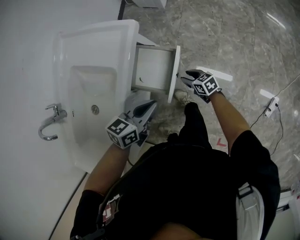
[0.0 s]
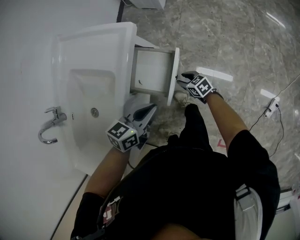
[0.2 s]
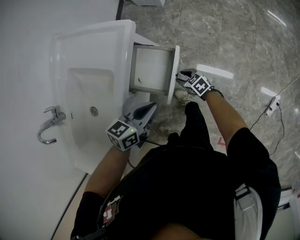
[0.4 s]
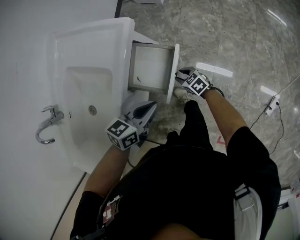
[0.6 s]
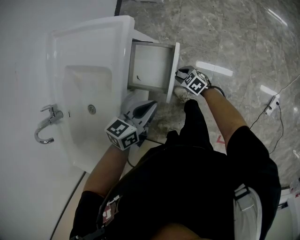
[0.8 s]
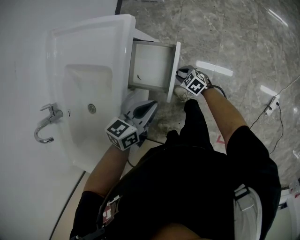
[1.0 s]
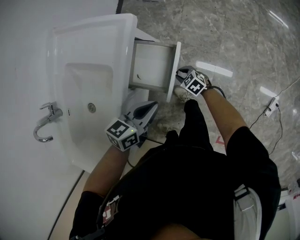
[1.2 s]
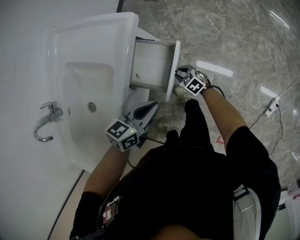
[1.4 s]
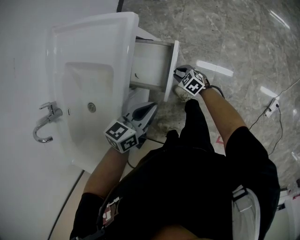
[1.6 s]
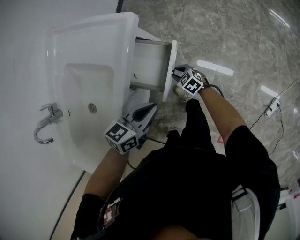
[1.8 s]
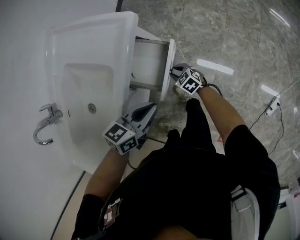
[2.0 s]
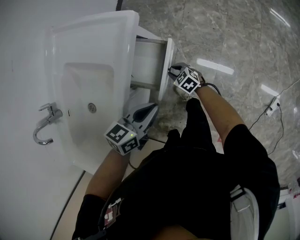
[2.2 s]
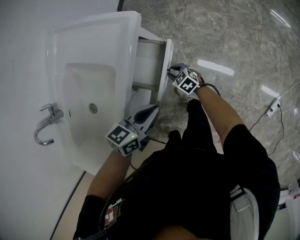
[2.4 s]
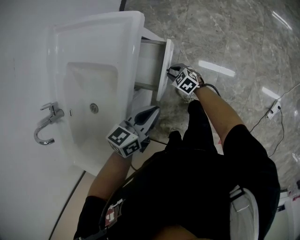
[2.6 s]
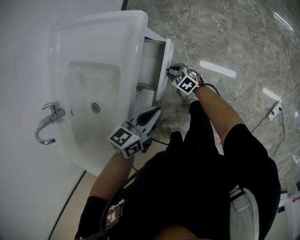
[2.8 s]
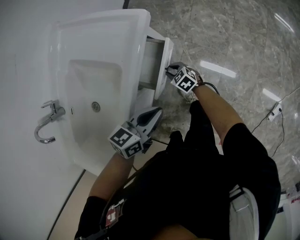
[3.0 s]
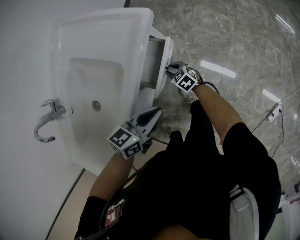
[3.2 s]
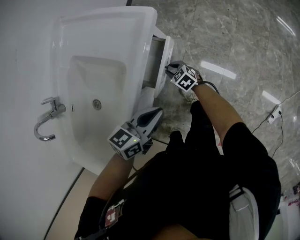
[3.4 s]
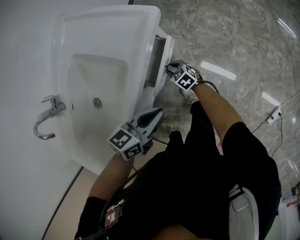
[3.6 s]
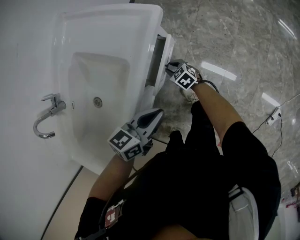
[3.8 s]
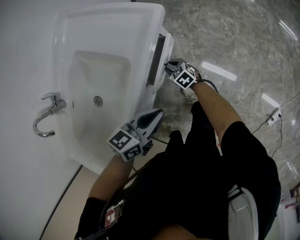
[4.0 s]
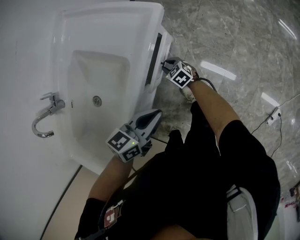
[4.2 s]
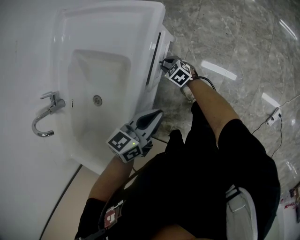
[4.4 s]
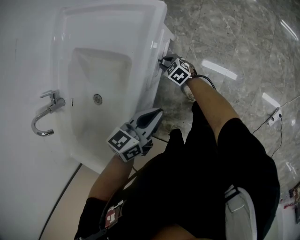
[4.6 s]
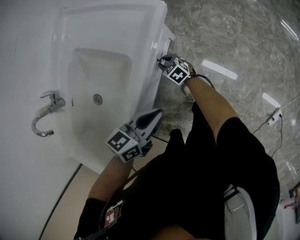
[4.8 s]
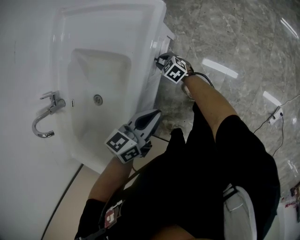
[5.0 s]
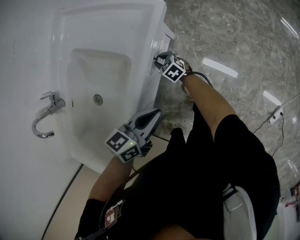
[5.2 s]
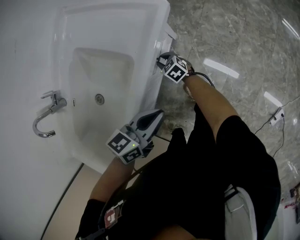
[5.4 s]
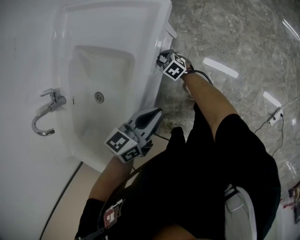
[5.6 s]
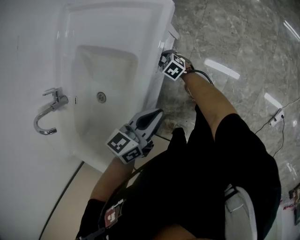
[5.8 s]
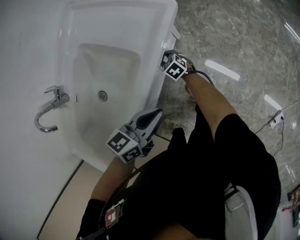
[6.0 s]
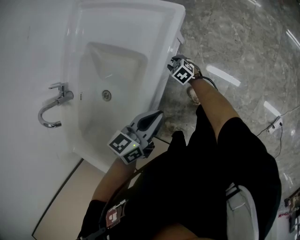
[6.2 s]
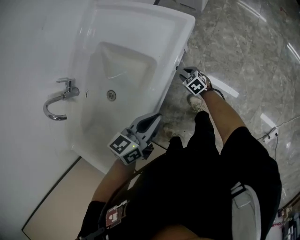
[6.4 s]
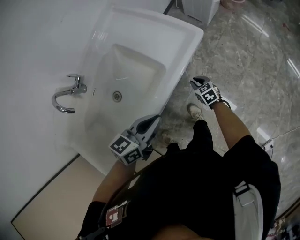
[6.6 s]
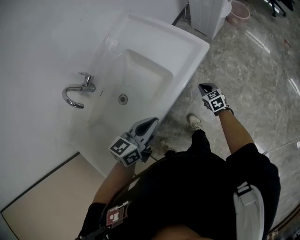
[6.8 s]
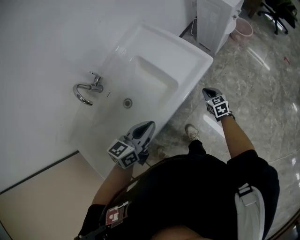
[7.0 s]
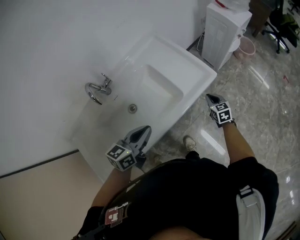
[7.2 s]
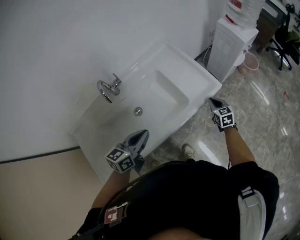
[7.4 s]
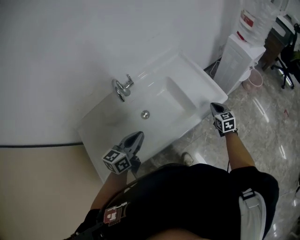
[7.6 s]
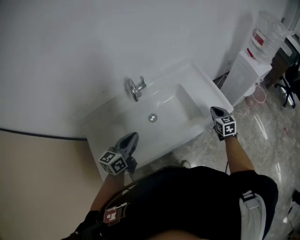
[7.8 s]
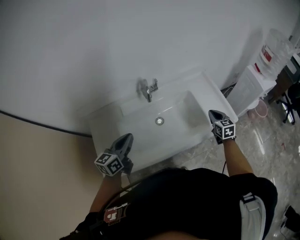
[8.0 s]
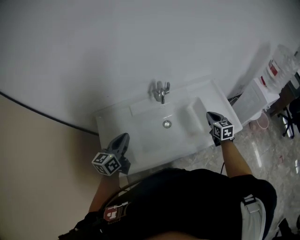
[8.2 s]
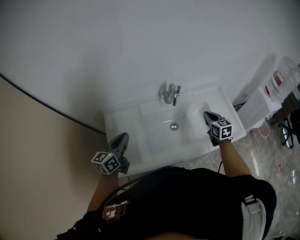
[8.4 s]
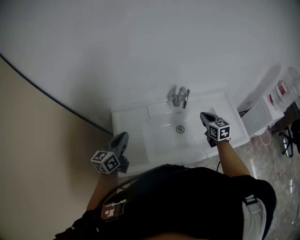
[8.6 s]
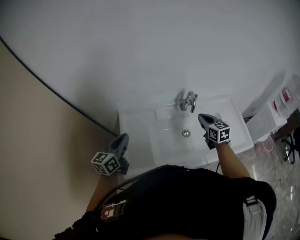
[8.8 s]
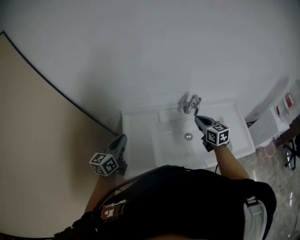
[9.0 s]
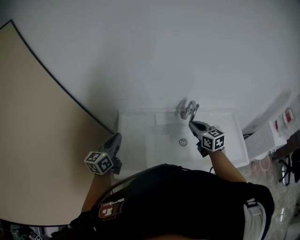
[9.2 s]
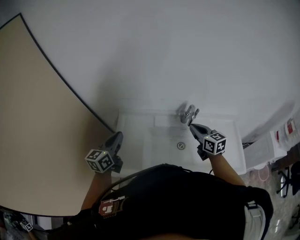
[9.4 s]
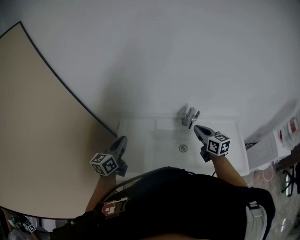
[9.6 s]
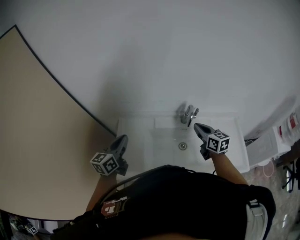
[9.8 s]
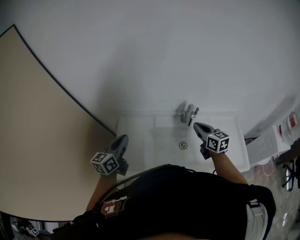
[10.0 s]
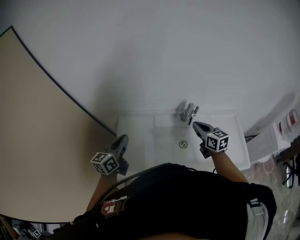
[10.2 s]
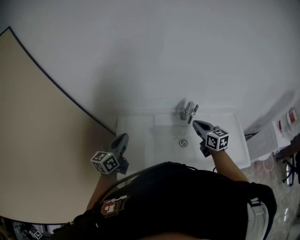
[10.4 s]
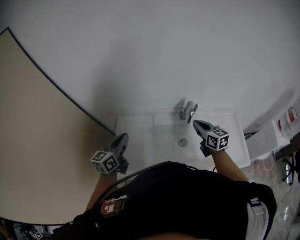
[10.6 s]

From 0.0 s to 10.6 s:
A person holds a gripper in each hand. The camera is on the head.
From 0.0 s to 1.6 s: The right gripper changes place by some 5 cm, and swivels roughly 30 degrees.
From 1.6 s to 3.0 s: The right gripper travels to the left by roughly 10 cm.
From 3.0 s to 4.6 s: The right gripper shifts approximately 5 cm to the left.
From 4.6 s to 6.0 s: The grippers stay close to where they were, moving slightly.
From 6.0 s to 7.6 s: The right gripper goes about 35 cm upward, and closes its fingers; the left gripper travels to the left and upward by about 35 cm, and rotates approximately 50 degrees.
From 7.6 s to 9.0 s: Both grippers are carried some 50 cm. The left gripper swivels some 40 degrees, while the right gripper swivels some 40 degrees.
From 9.0 s to 10.6 s: The right gripper ends up roughly 5 cm from where it was. The left gripper is displaced to the right by some 5 cm.

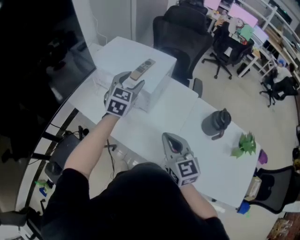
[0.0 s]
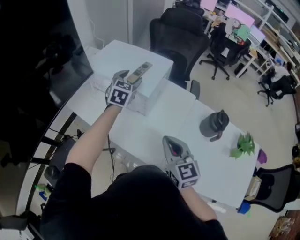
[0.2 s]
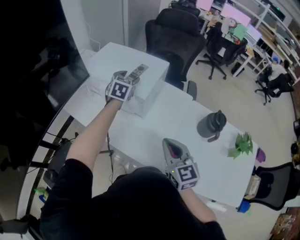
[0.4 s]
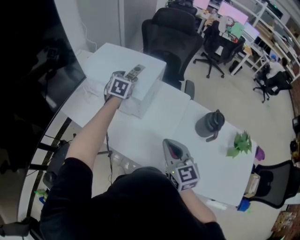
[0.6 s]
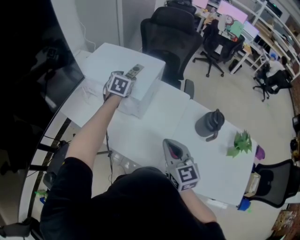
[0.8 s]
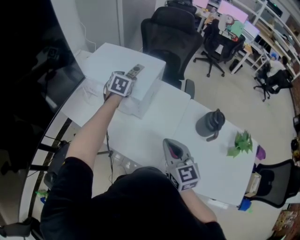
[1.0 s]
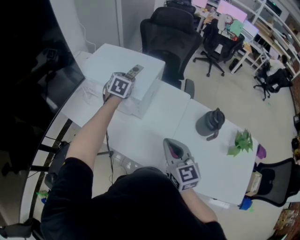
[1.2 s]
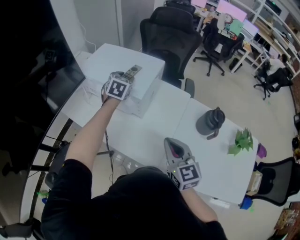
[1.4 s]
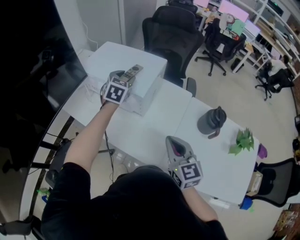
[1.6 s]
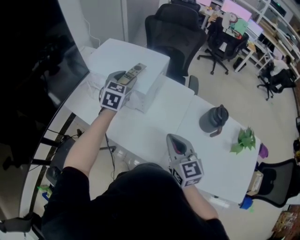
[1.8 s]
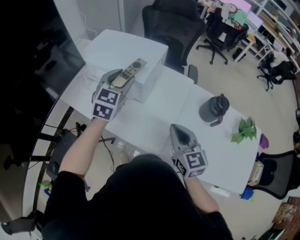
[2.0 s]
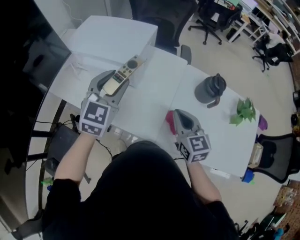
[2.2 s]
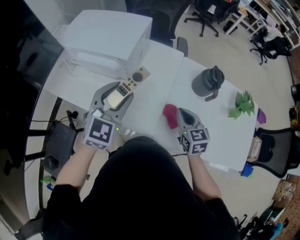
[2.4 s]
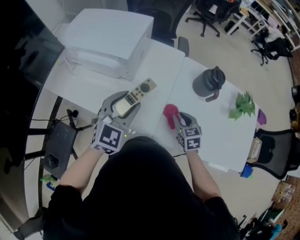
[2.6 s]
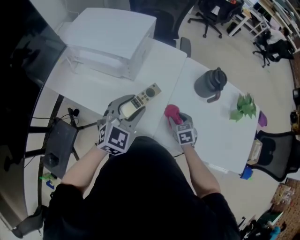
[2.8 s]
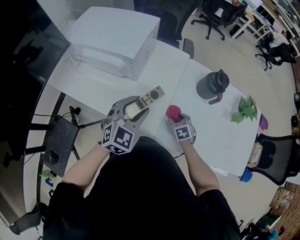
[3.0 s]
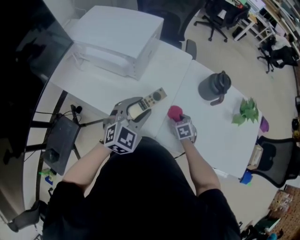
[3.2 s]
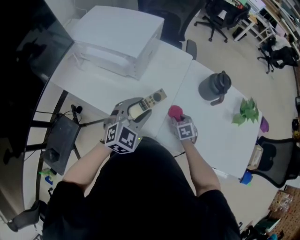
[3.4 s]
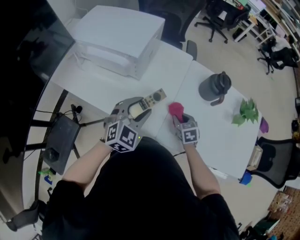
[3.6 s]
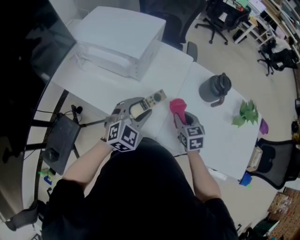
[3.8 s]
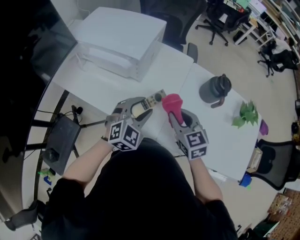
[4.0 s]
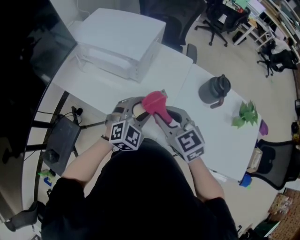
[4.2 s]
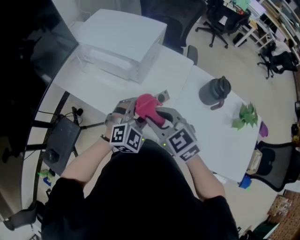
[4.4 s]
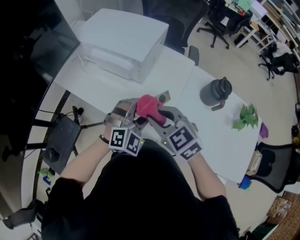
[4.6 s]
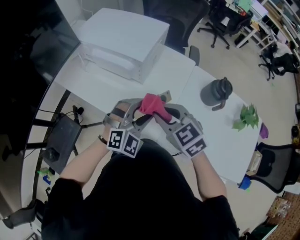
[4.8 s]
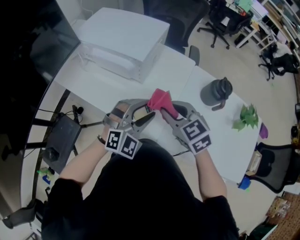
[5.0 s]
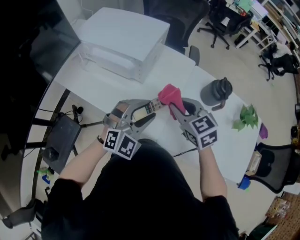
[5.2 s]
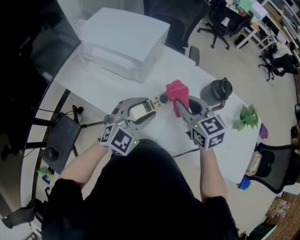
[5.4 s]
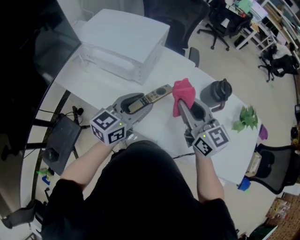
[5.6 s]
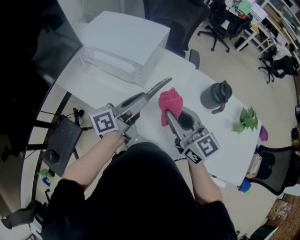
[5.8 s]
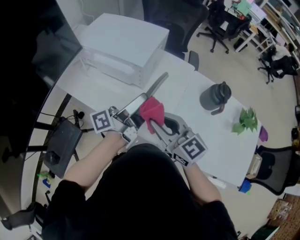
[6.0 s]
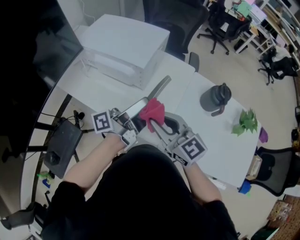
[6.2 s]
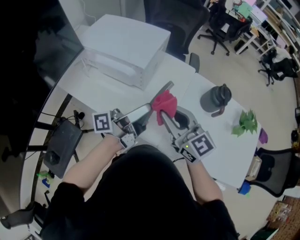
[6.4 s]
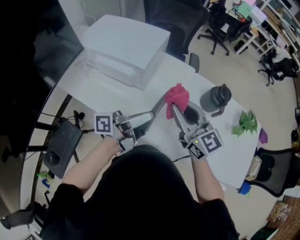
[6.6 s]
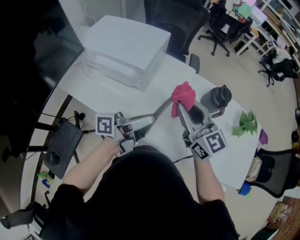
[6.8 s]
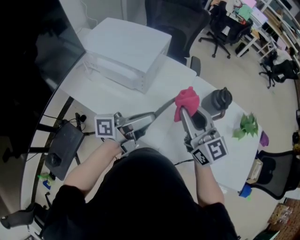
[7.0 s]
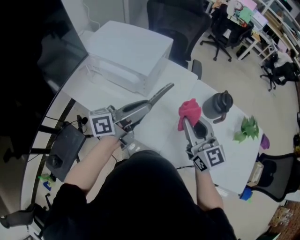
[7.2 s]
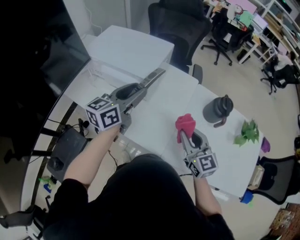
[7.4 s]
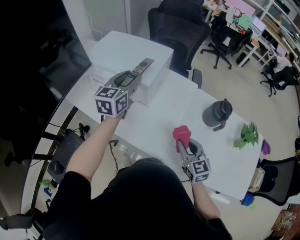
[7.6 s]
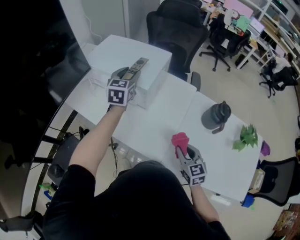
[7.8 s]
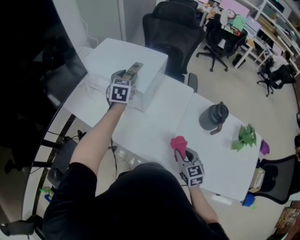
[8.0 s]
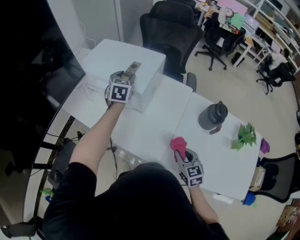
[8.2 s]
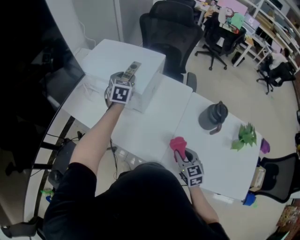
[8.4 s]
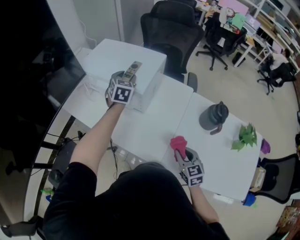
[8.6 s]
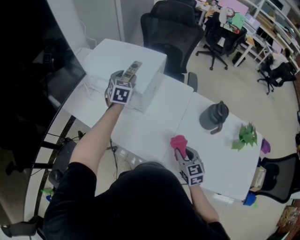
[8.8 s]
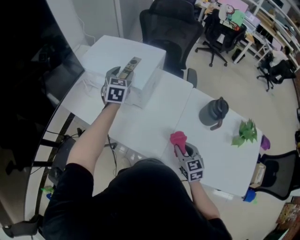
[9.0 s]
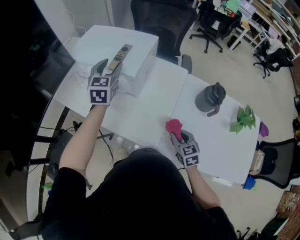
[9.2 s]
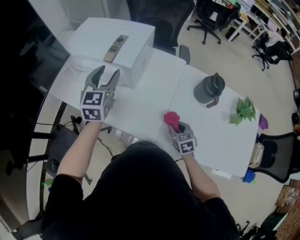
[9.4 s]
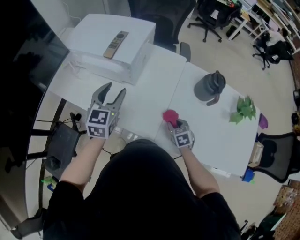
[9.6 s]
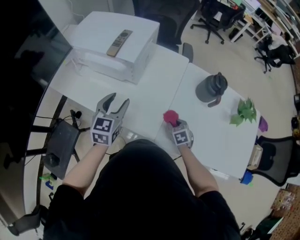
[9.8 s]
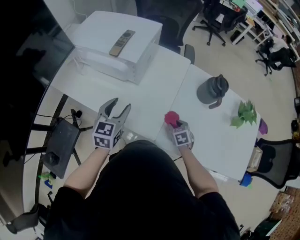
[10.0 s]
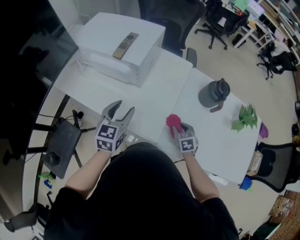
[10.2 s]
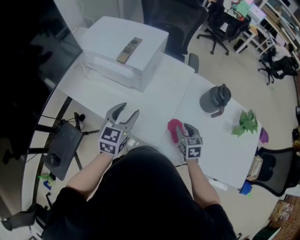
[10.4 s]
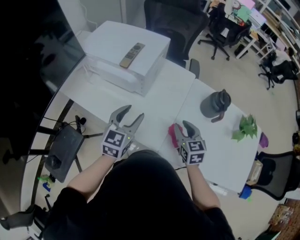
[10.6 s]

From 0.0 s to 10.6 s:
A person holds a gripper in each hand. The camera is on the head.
From 0.0 s to 1.6 s: The left gripper heads forward, covering roughly 5 cm.
From 1.6 s to 3.0 s: The right gripper heads downward, covering about 30 cm, tips its fingers downward by some 40 degrees, and opens up, while the left gripper moves backward and to the right, some 30 cm, and turns by about 30 degrees.
From 3.0 s to 4.6 s: The left gripper rotates some 20 degrees; the right gripper shifts approximately 35 cm upward and to the left, turns by about 40 degrees, and closes.
From 4.6 s to 6.0 s: The left gripper goes roughly 10 cm upward, and twists roughly 110 degrees counterclockwise, seen from behind. Meanwhile the right gripper goes to the right and returns, approximately 10 cm each way, and swivels about 30 degrees.
From 6.0 s to 7.6 s: The right gripper moves to the right and downward, about 15 cm, and turns by about 30 degrees. The left gripper heads forward and to the left, covering some 15 cm, and rolls clockwise, seen from behind, by about 70 degrees.
From 7.6 s to 9.0 s: The right gripper moves downward, about 10 cm; the left gripper moves forward and downward, some 10 cm, and swivels some 30 degrees.
From 9.0 s to 10.6 s: The left gripper heads backward, covering roughly 25 cm, and swivels roughly 20 degrees, while the right gripper goes downward and returns, some 15 cm each way.

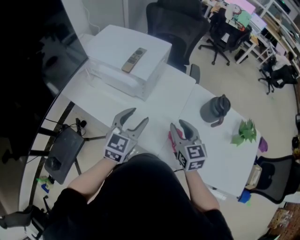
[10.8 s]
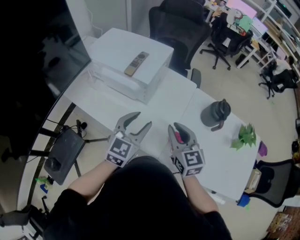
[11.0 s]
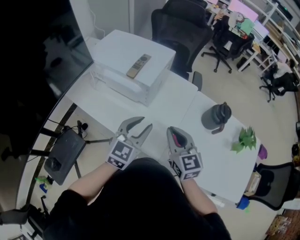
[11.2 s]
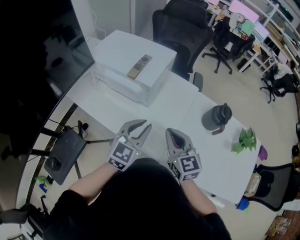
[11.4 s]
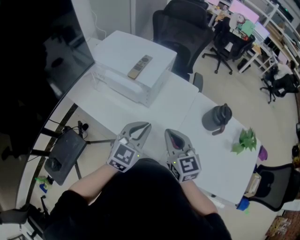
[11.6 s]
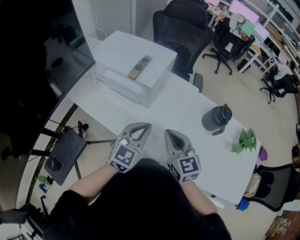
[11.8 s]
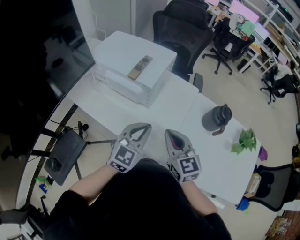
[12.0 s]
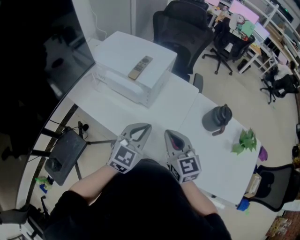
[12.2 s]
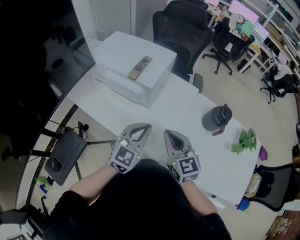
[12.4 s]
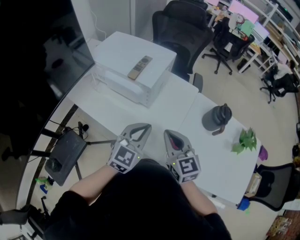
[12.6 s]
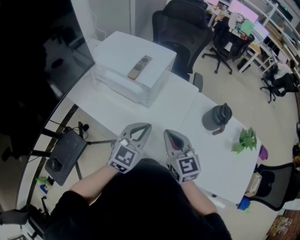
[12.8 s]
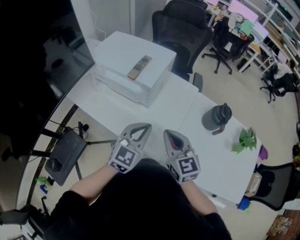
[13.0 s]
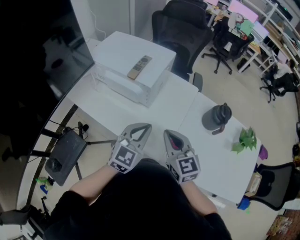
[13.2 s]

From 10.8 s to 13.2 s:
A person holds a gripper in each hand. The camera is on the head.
From 10.8 s to 12.0 s: The left gripper closes its fingers, while the right gripper is displaced to the left by roughly 5 cm, and closes up.
From 12.0 s to 13.2 s: Both grippers stay put.
